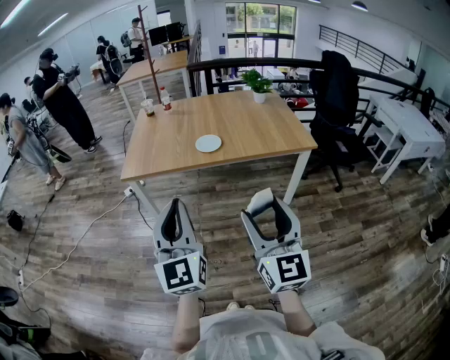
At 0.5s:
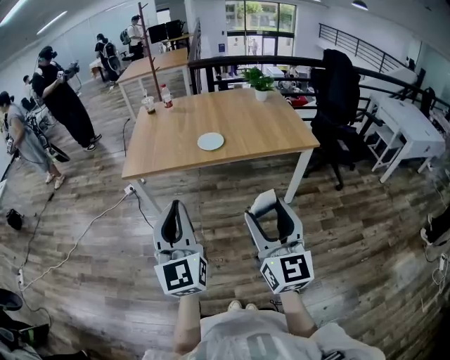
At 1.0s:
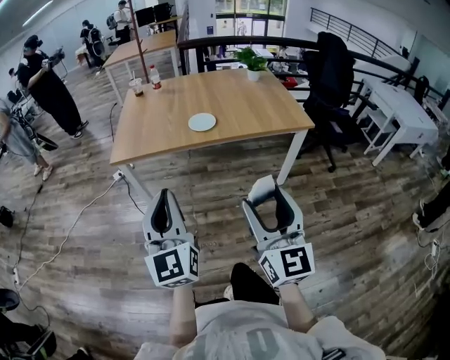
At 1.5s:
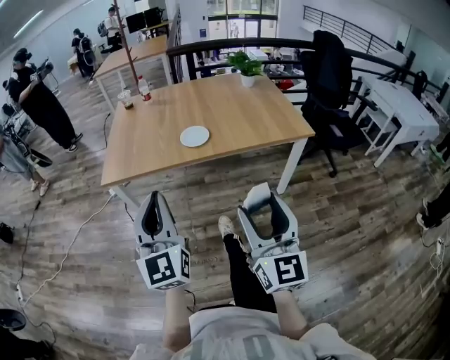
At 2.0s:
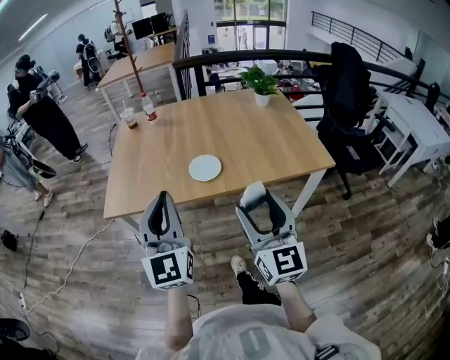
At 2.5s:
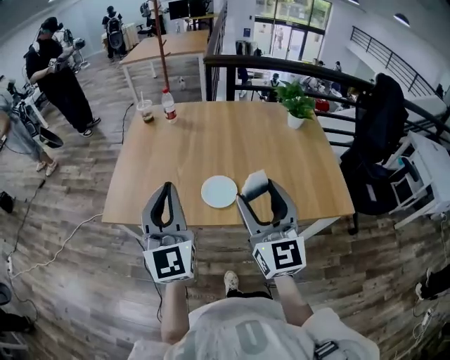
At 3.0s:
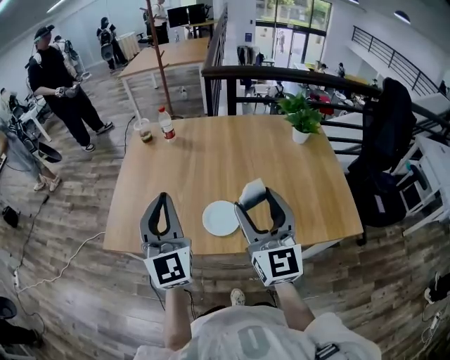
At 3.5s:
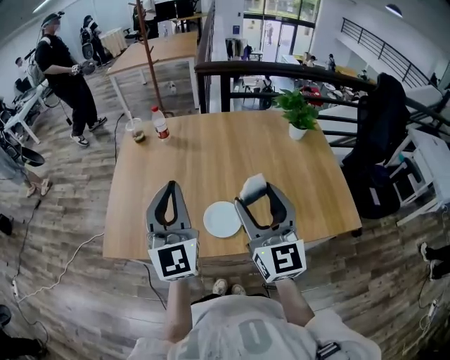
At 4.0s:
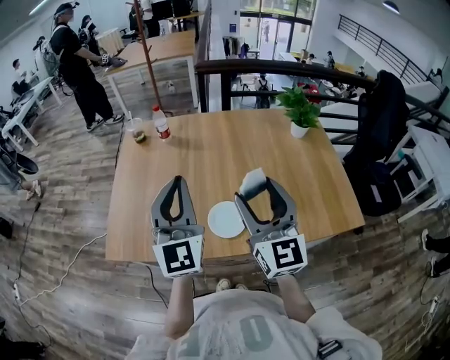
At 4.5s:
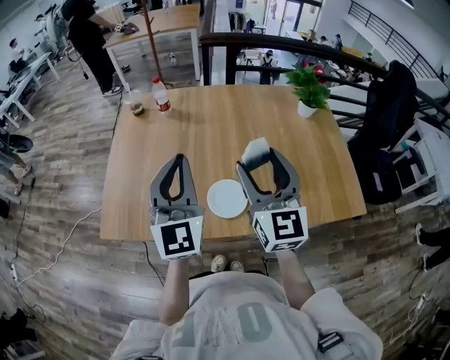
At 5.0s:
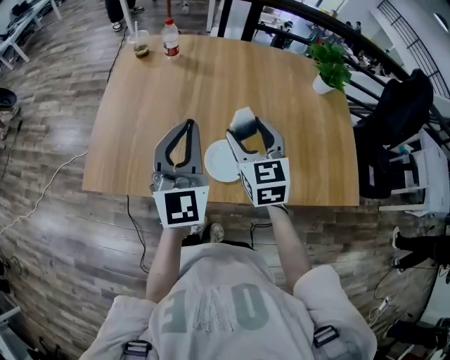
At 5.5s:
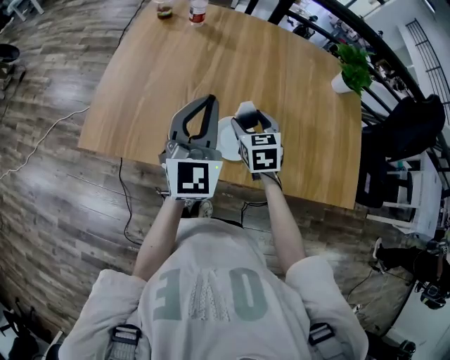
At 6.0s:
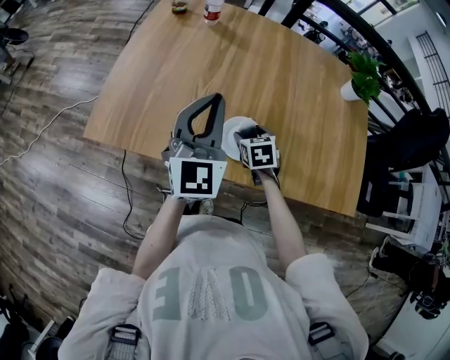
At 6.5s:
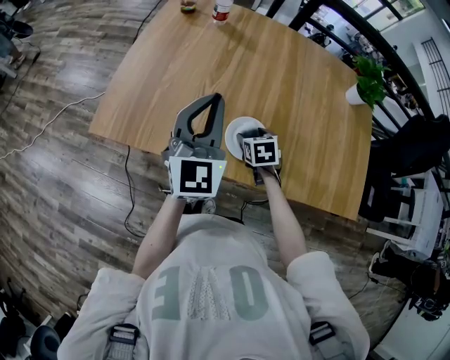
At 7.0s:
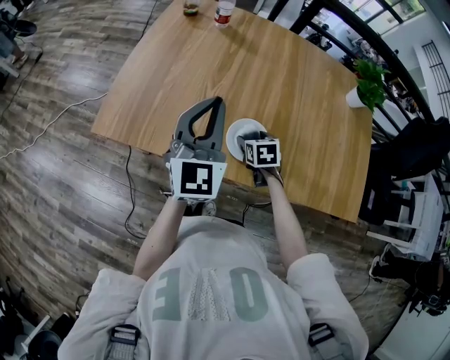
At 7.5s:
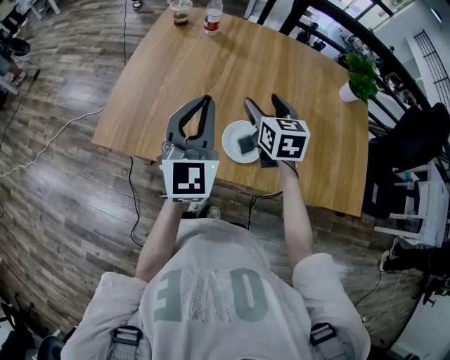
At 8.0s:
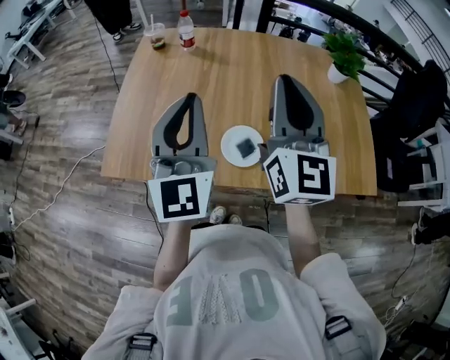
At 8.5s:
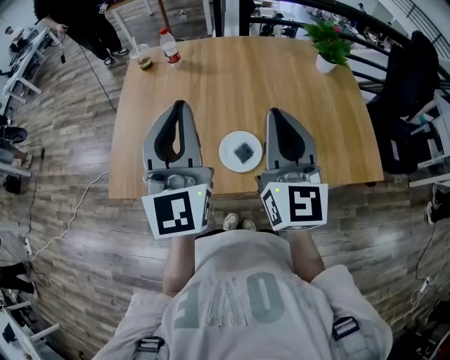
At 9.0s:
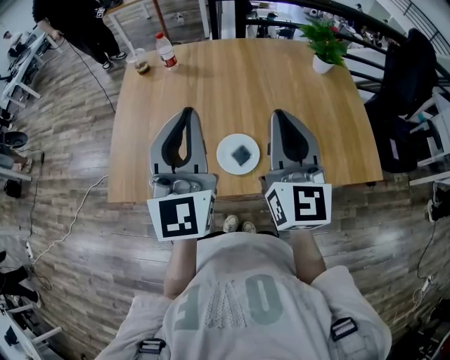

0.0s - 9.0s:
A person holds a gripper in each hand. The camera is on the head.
0.0s - 2.0s: Both grippers move forward, some 25 cm.
2.0s - 4.5s: The two grippers go approximately 35 cm forward.
4.5s - 7.0s: The right gripper shifts approximately 35 cm downward, and tips its fingers downward by some 60 degrees. Meanwhile the left gripper goes about 10 cm downward.
7.0s - 9.0s: The left gripper travels upward by approximately 15 cm; the right gripper is displaced upward by about 35 cm, angles its fingers upward, by roughly 60 degrees, and closes up.

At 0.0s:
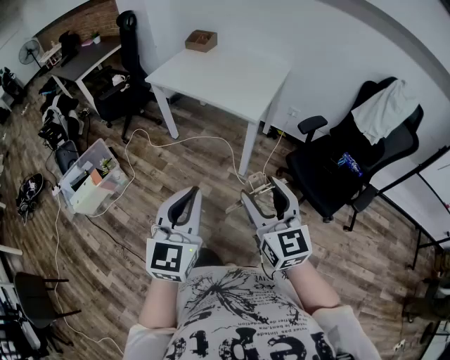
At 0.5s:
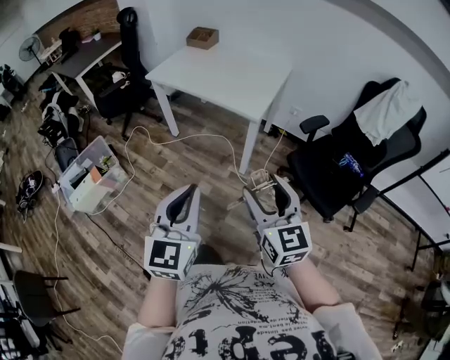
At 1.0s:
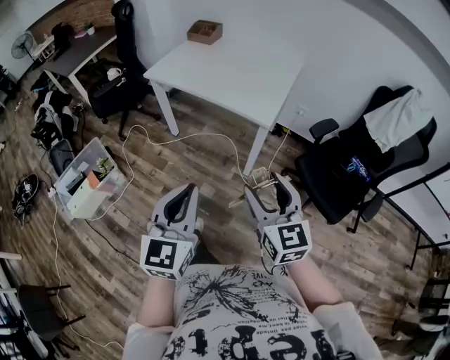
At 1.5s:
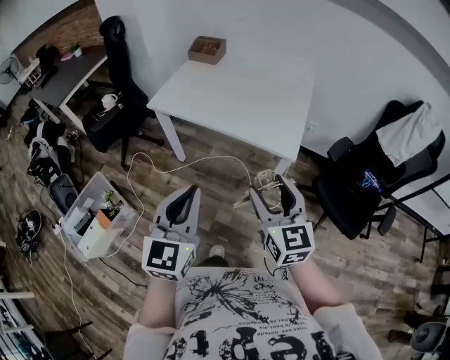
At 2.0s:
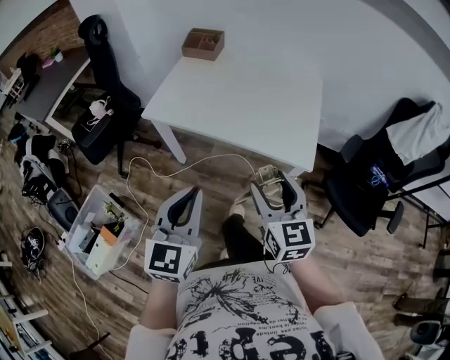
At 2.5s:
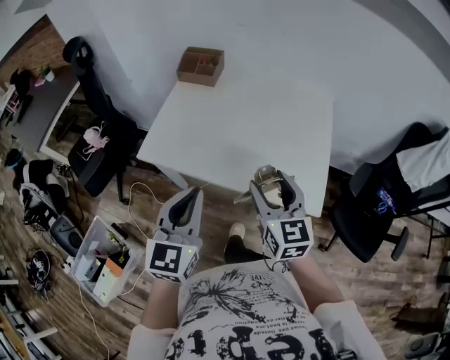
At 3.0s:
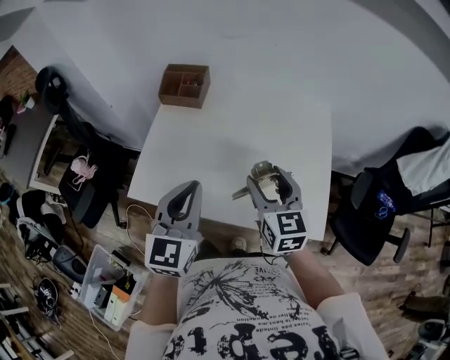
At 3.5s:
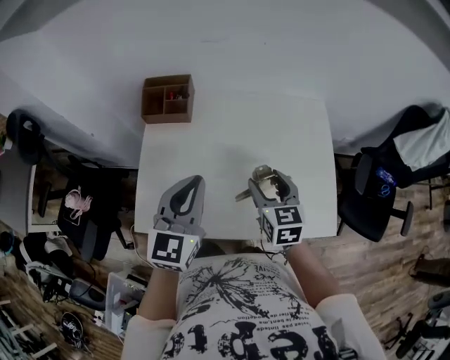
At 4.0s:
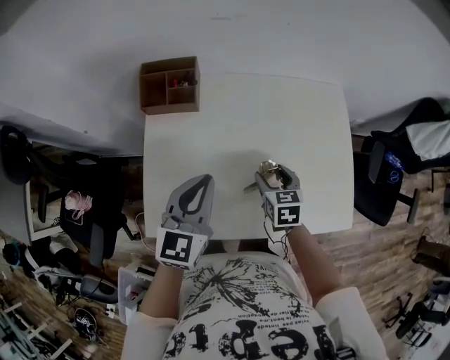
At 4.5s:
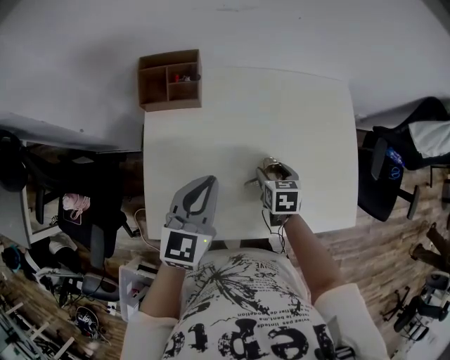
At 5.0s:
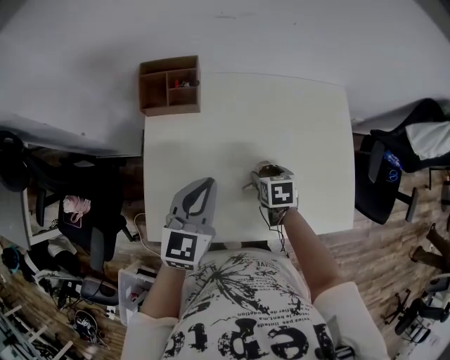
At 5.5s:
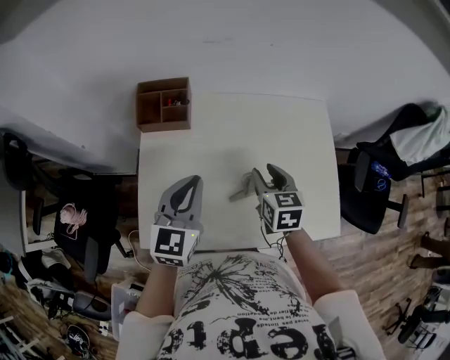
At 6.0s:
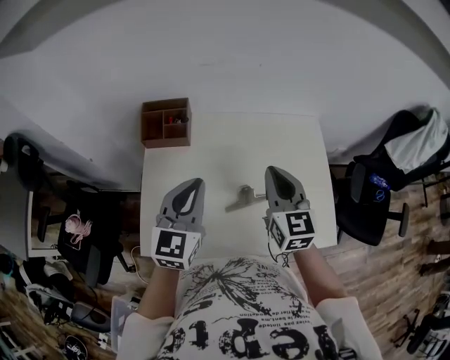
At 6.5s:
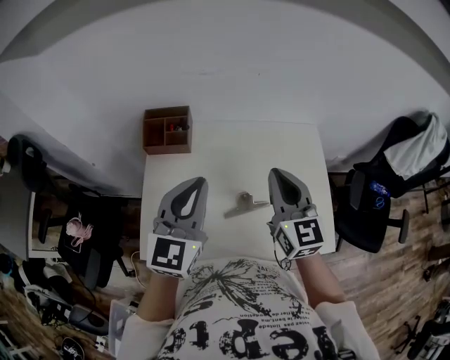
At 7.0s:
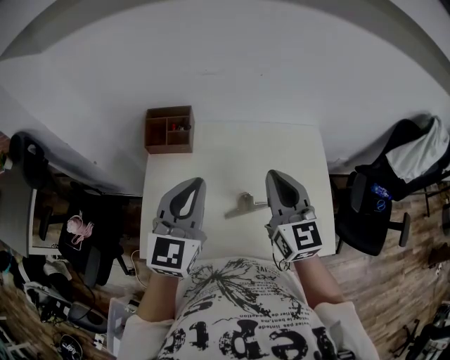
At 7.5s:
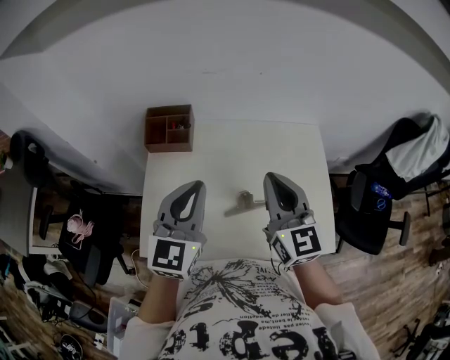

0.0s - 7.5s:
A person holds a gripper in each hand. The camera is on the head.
0.0s - 2.0s: Both grippers are carried forward and to the left, about 50 cm.
2.0s - 4.0s: The two grippers travel together, forward, some 50 cm. The left gripper changes its angle by approximately 20 degrees. The right gripper travels downward by about 20 cm, and angles its fingers downward, by some 30 degrees.
4.0s - 5.5s: The right gripper shifts about 10 cm upward, and closes up.
5.5s - 7.5s: The left gripper moves upward, about 10 cm. The right gripper shifts roughly 20 cm upward, tips its fingers upward by roughly 30 degrees, and closes its fingers.

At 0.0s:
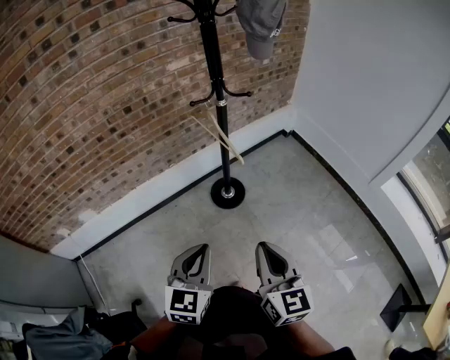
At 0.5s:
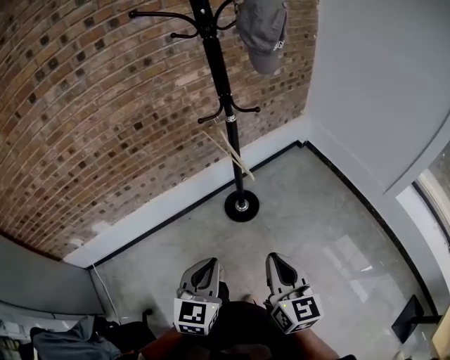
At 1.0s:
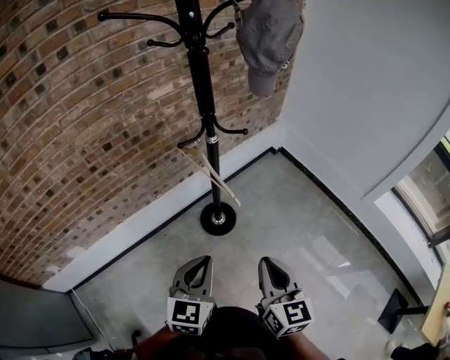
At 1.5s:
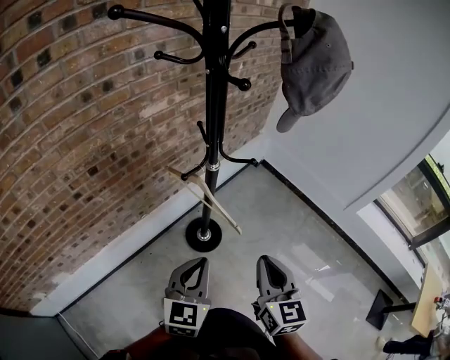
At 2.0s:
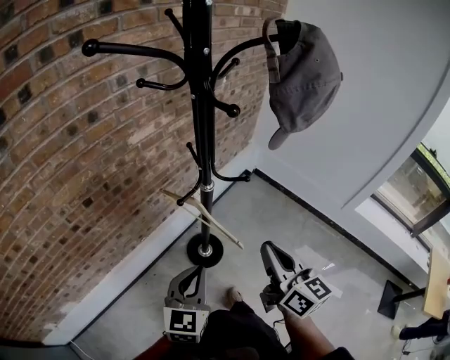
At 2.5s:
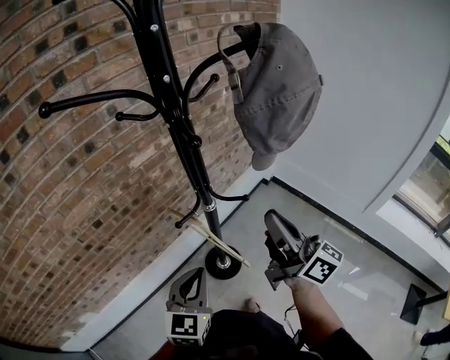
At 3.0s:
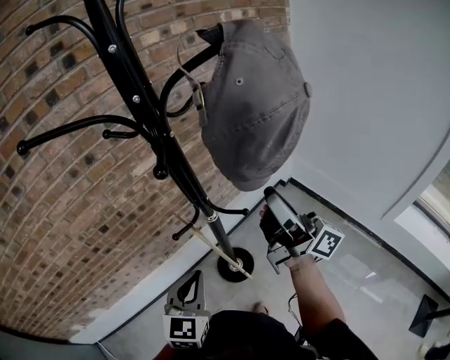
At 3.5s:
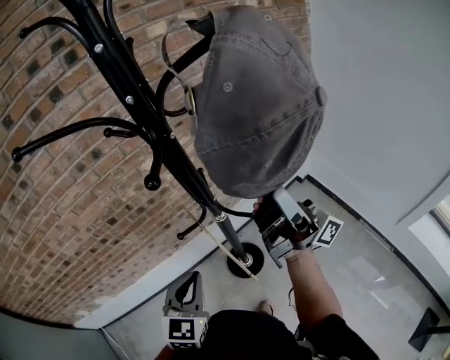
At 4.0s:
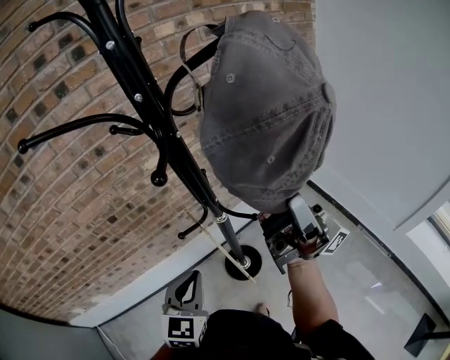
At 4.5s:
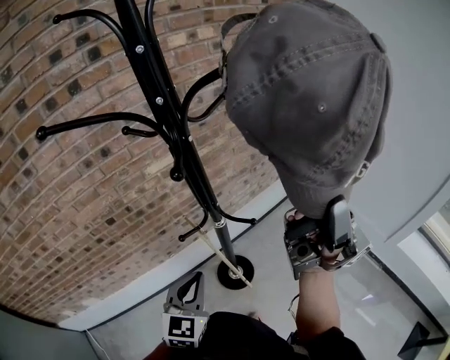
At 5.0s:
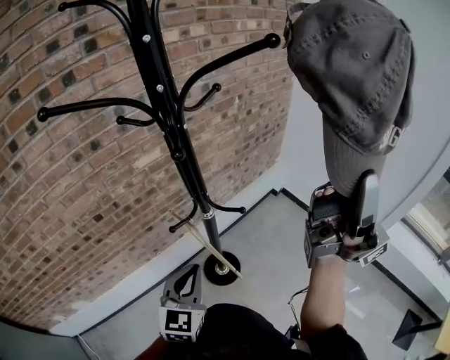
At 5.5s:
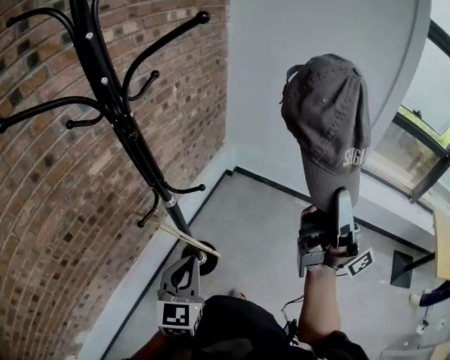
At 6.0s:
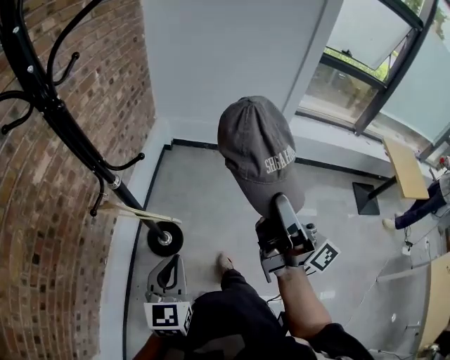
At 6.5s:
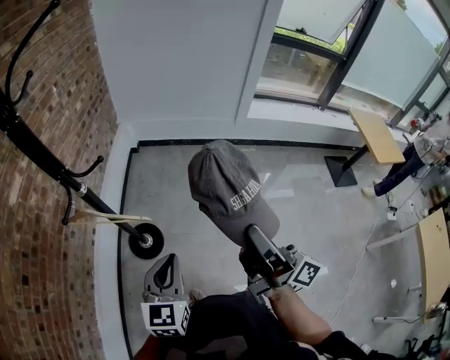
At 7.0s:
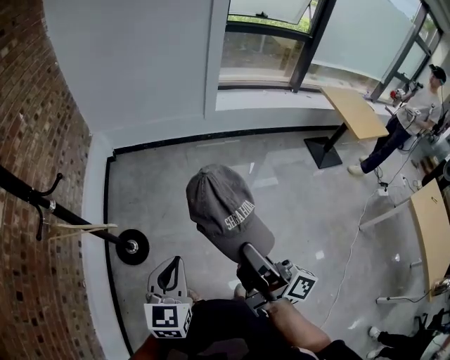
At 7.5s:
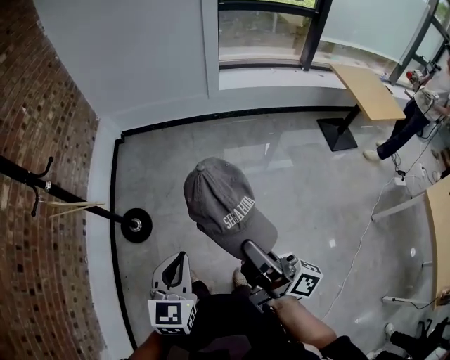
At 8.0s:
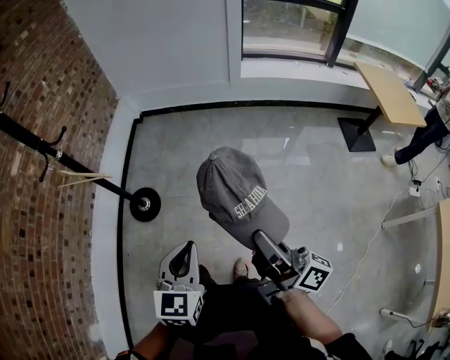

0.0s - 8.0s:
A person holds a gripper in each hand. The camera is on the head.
0.0s - 2.0s: Both grippers move forward, approximately 30 cm.
2.0s - 4.0s: The right gripper shifts by roughly 25 cm, and tips its fingers upward by roughly 70 degrees. Meanwhile the left gripper shifts by about 10 cm, and rotates approximately 20 degrees.
4.0s - 6.0s: The left gripper shifts by roughly 15 cm, and changes its angle by some 40 degrees; the right gripper shifts by approximately 30 cm, and changes its angle by some 70 degrees.
6.0s - 8.0s: The two grippers travel together, to the right and backward, some 40 cm. The right gripper goes about 15 cm downward, and turns by some 20 degrees.

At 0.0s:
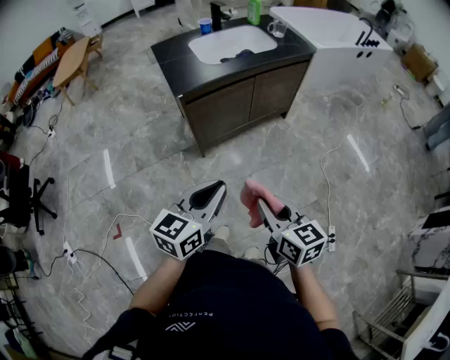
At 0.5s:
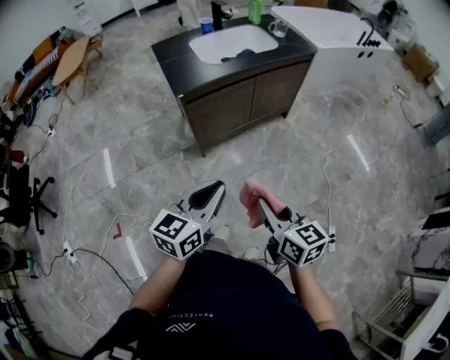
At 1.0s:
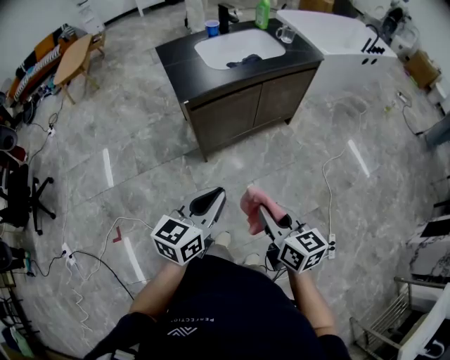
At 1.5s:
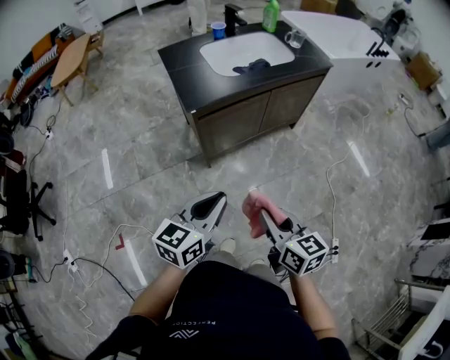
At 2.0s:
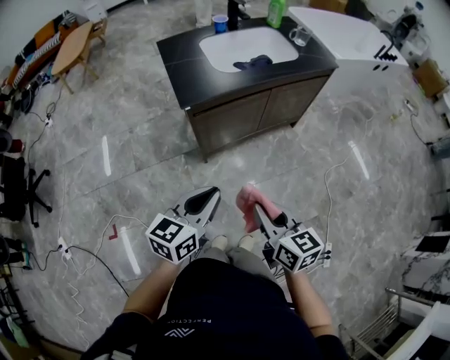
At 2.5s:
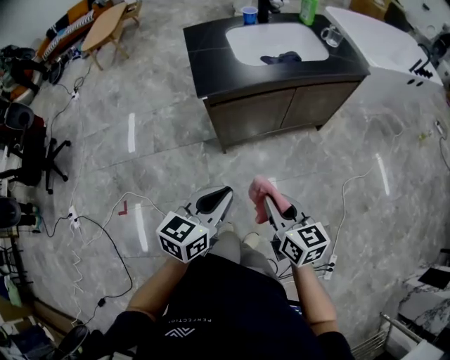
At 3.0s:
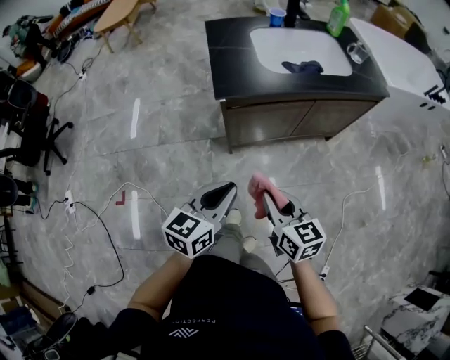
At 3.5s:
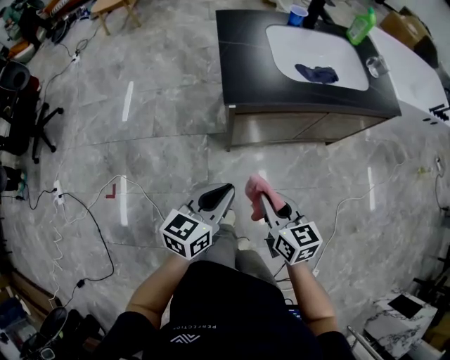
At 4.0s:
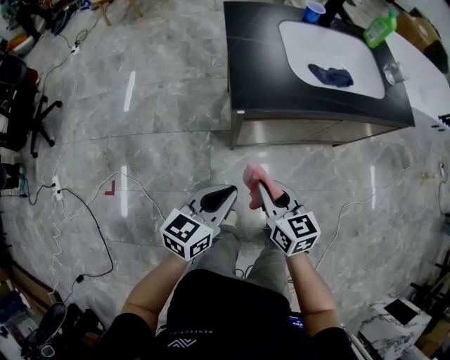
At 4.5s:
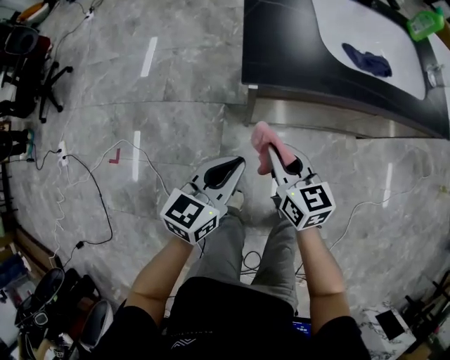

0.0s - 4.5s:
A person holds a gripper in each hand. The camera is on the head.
0.0s - 2.0s: The two grippers go roughly 10 cm forward.
2.0s - 4.5s: Both grippers move forward and downward, approximately 30 cm. The left gripper changes its angle by about 20 degrees; the right gripper swivels some 20 degrees.
